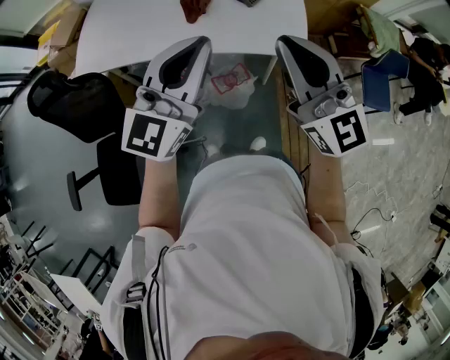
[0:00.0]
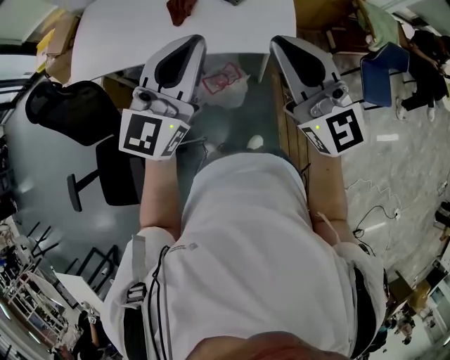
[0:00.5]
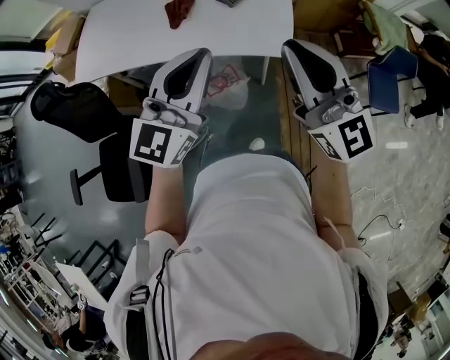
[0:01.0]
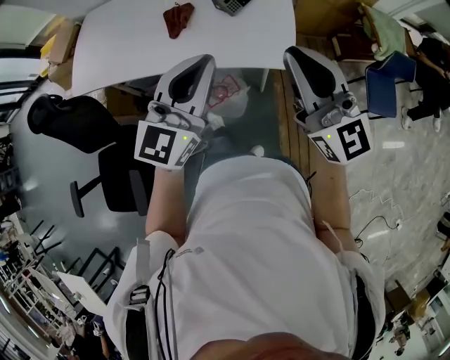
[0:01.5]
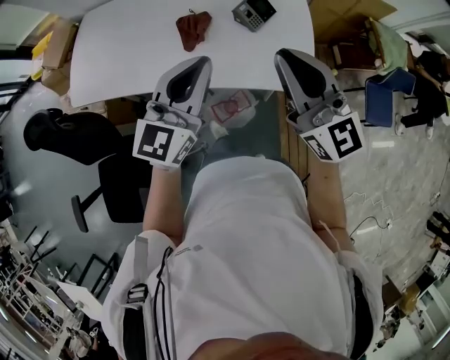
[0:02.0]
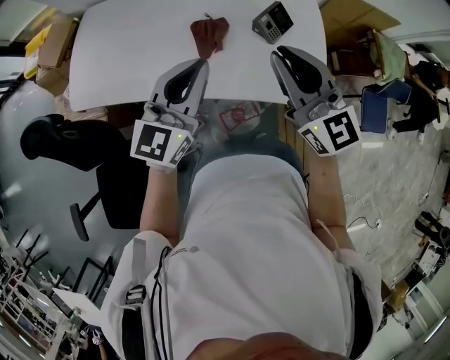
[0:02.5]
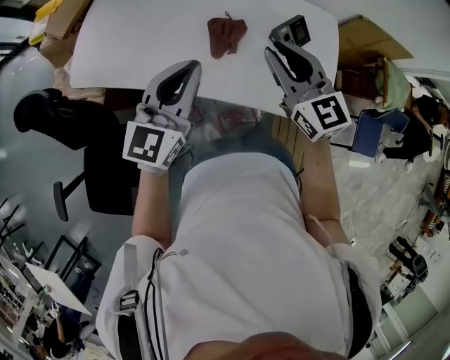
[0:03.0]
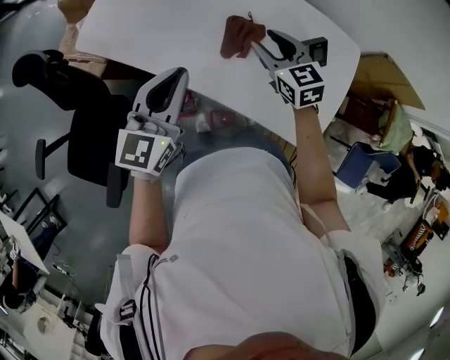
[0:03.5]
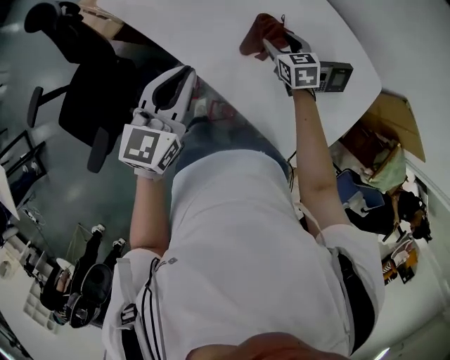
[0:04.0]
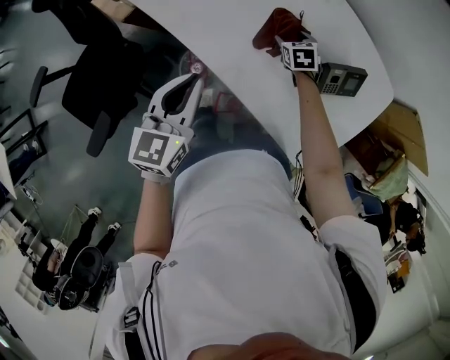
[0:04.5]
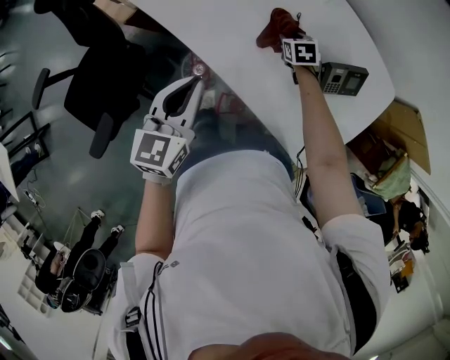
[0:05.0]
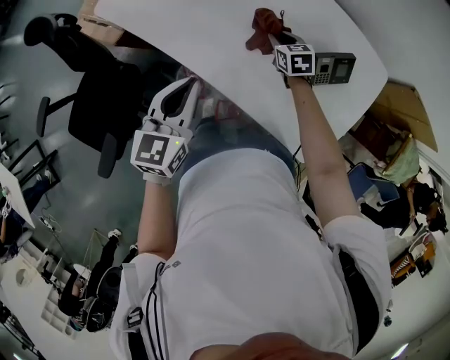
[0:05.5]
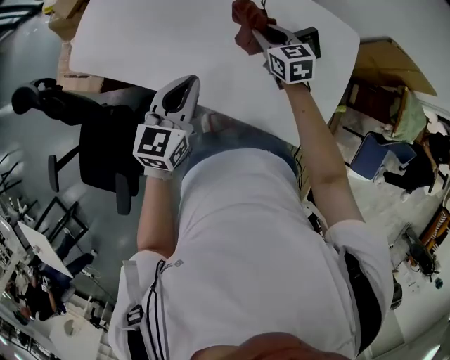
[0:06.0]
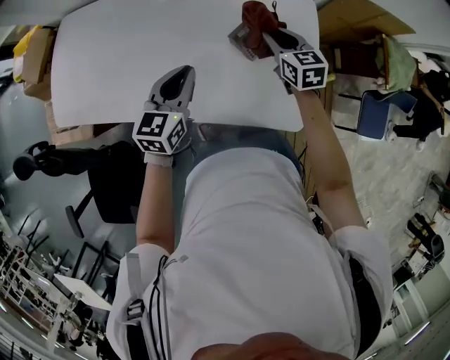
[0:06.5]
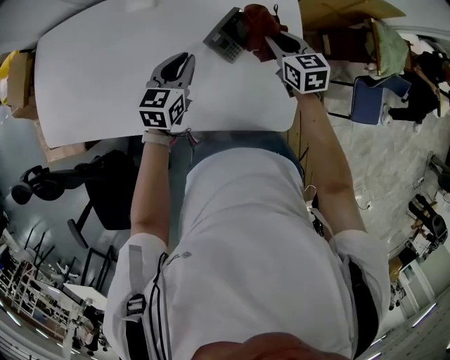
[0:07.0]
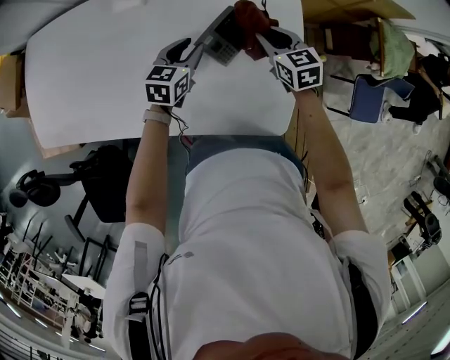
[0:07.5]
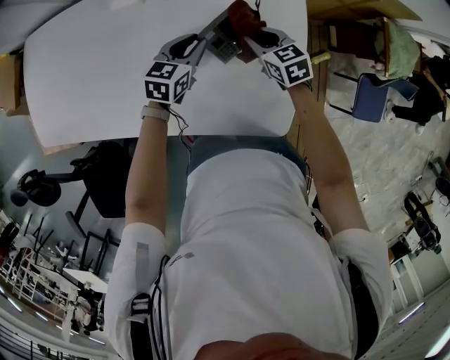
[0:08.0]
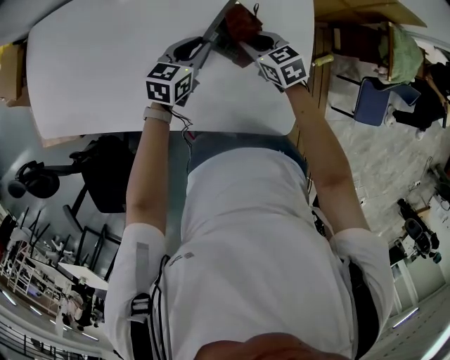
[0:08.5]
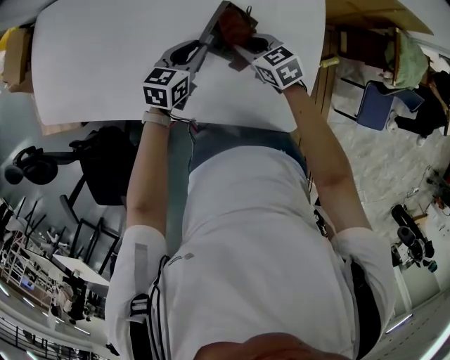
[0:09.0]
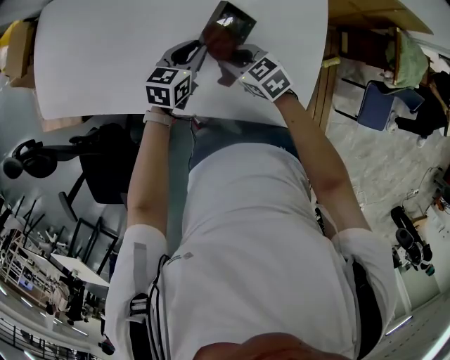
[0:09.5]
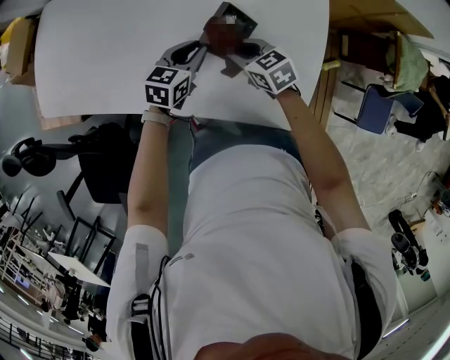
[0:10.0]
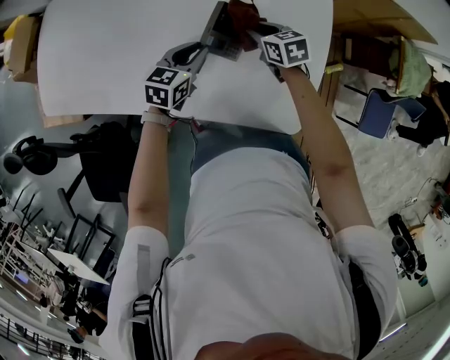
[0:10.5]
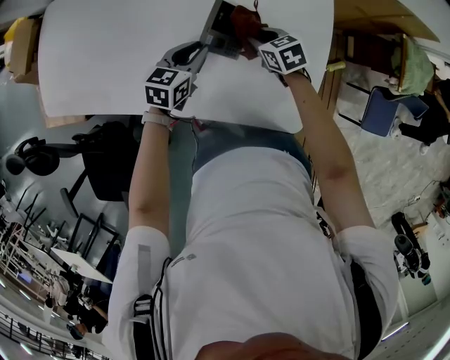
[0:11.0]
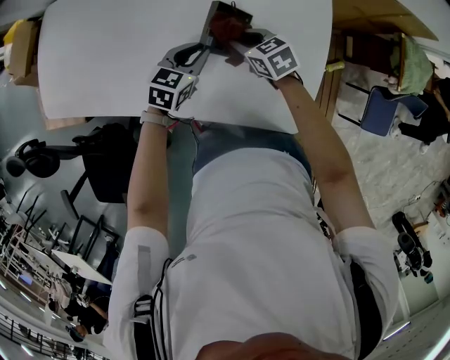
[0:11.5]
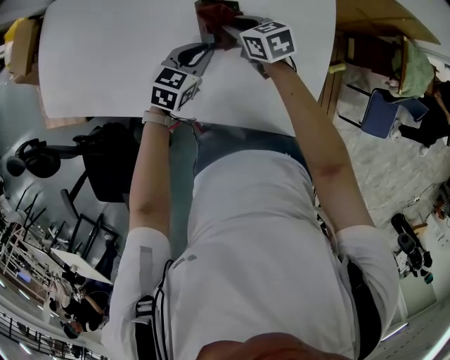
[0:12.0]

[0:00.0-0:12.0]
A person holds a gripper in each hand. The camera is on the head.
0:00.0 to 0:02.0: The right gripper is displaced forward by roughly 15 cm; the left gripper travels forward and downward by approximately 15 cm.
0:02.0 to 0:04.0: The left gripper shifts by roughly 20 cm, and rotates roughly 50 degrees; the right gripper moves downward, approximately 35 cm, tips its fingers downward by some 50 degrees, and opens its fingers.
0:04.0 to 0:06.0: The right gripper moves to the right and upward, roughly 10 cm, swivels some 20 degrees, and closes its fingers. The left gripper moves to the right, some 10 cm.
0:06.0 to 0:08.0: The right gripper is displaced to the right by some 20 cm. The left gripper goes approximately 30 cm to the right, forward and downward, and turns by about 30 degrees.
0:08.0 to 0:10.0: The right gripper goes some 15 cm to the left and backward, while the left gripper heads to the left and backward, covering roughly 10 cm.
0:10.0 to 0:12.0: The right gripper moves forward, about 10 cm.

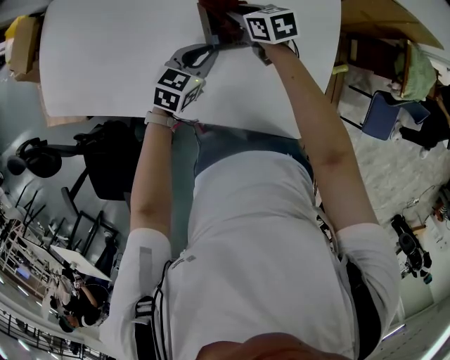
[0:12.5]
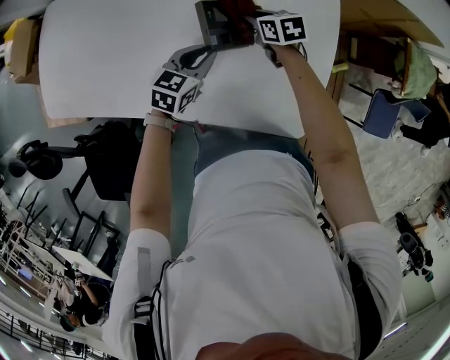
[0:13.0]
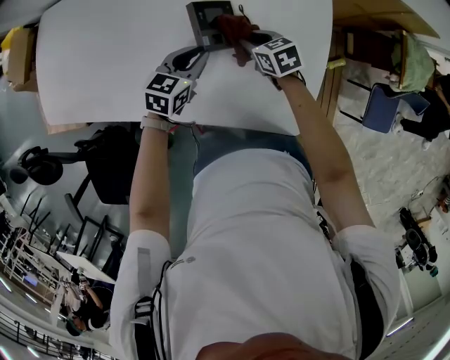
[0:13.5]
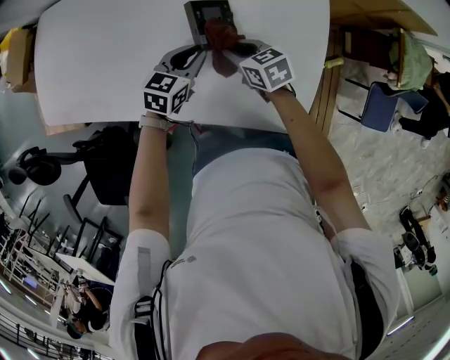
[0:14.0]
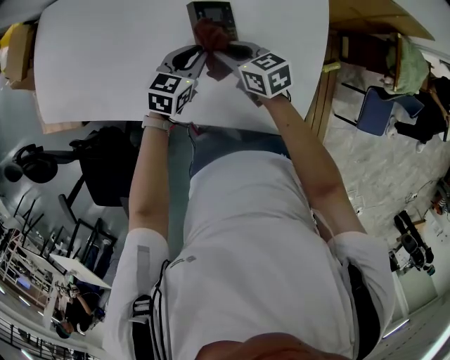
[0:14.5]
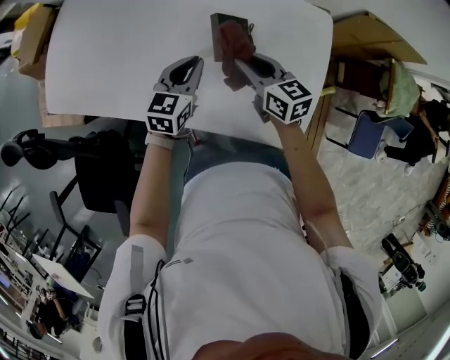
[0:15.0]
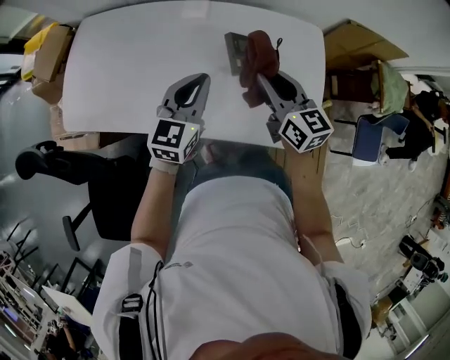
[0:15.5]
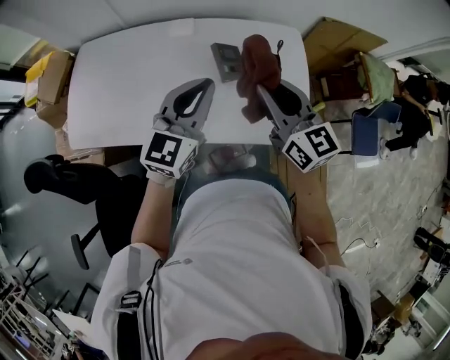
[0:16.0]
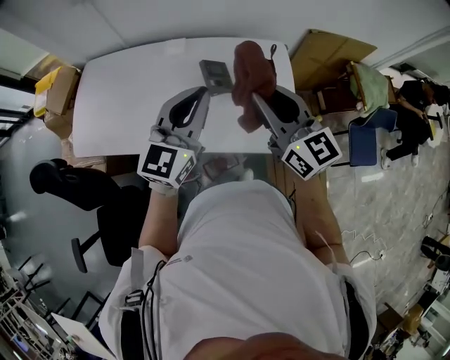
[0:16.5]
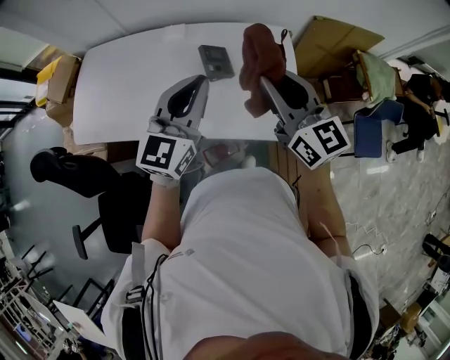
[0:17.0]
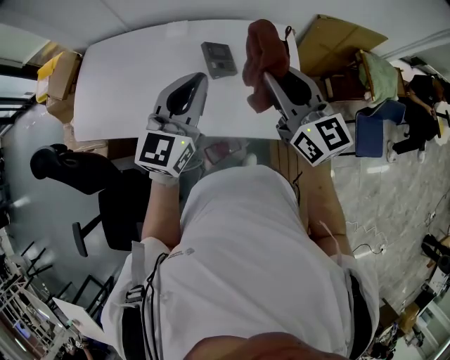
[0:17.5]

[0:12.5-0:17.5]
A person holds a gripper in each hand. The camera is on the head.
0:12.5 to 0:15.0: The right gripper goes approximately 15 cm backward and upward; the left gripper goes approximately 10 cm upward and to the left.
0:15.0 to 0:17.5: The grippers both shift upward and backward by some 30 cm. The right gripper changes its angle by roughly 30 degrees. The left gripper changes its angle by some 30 degrees.

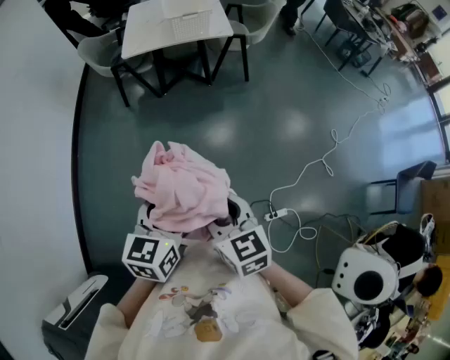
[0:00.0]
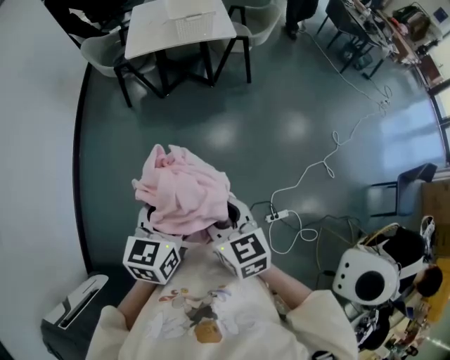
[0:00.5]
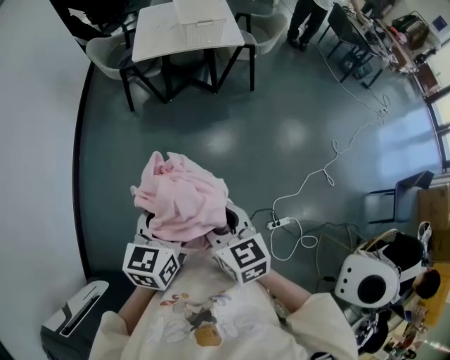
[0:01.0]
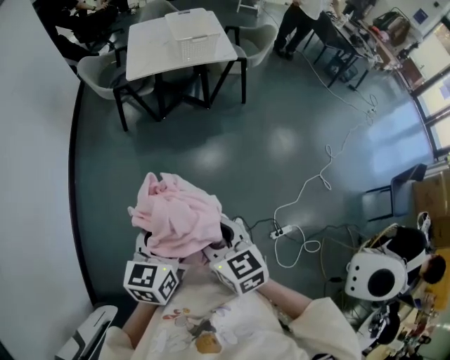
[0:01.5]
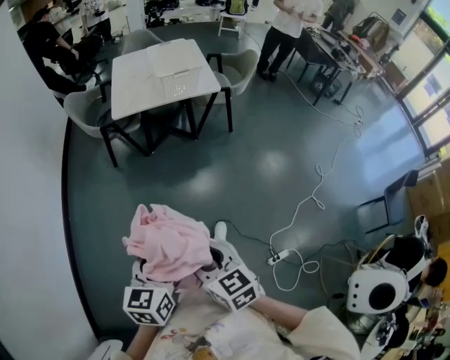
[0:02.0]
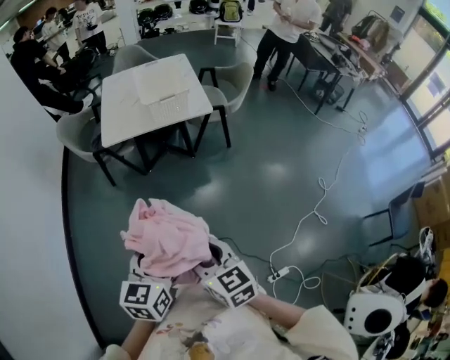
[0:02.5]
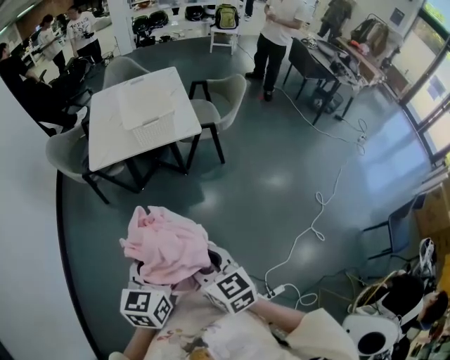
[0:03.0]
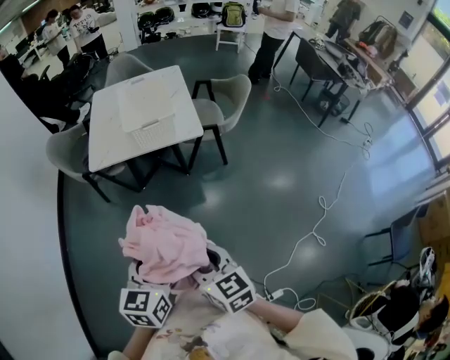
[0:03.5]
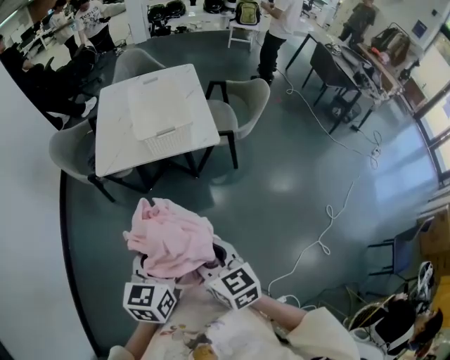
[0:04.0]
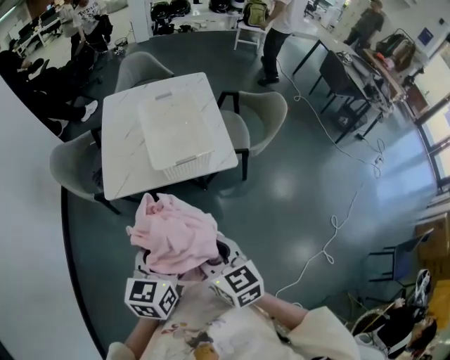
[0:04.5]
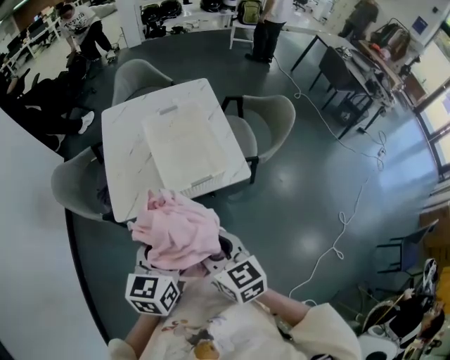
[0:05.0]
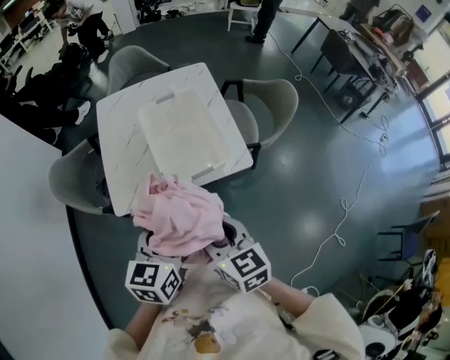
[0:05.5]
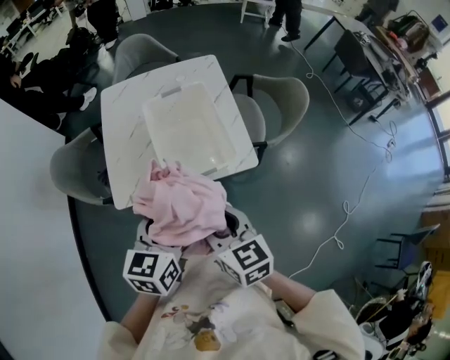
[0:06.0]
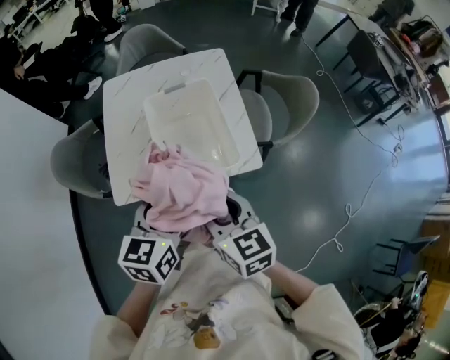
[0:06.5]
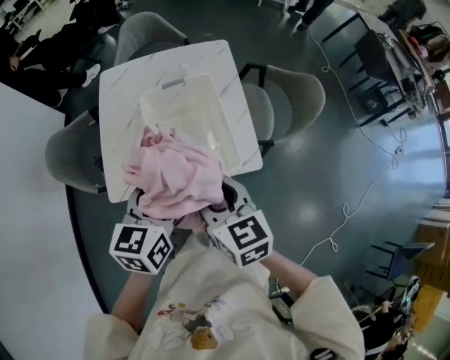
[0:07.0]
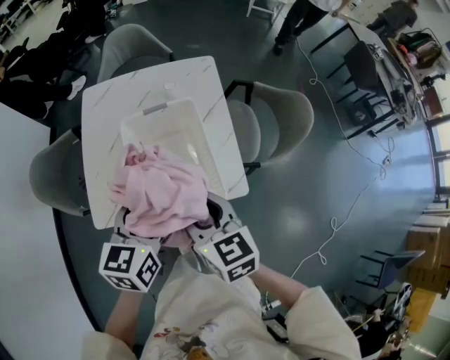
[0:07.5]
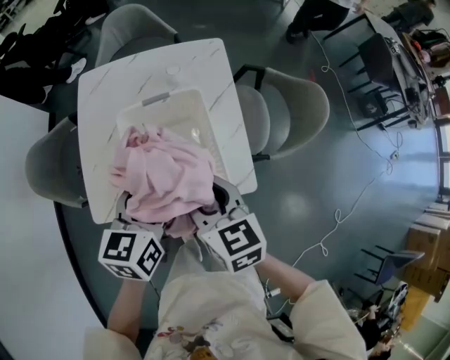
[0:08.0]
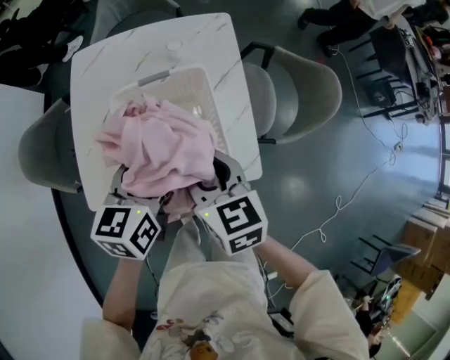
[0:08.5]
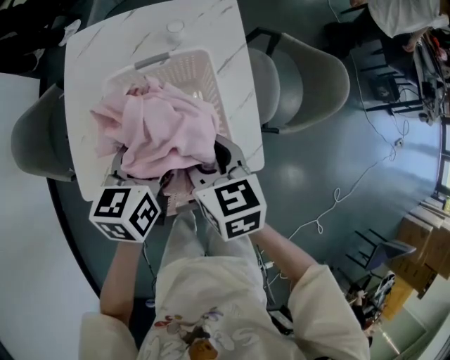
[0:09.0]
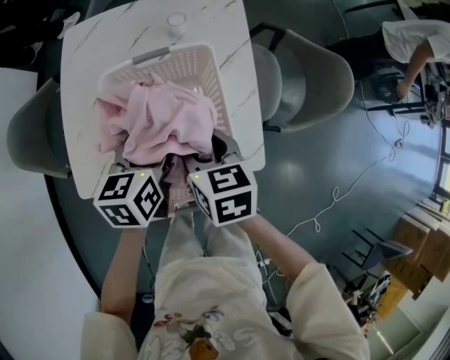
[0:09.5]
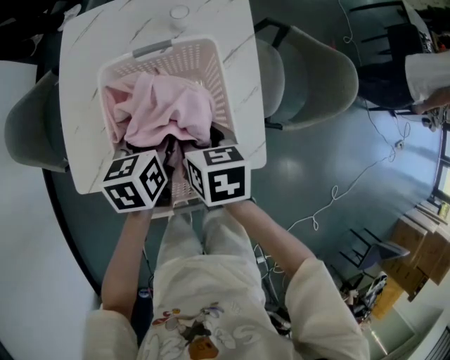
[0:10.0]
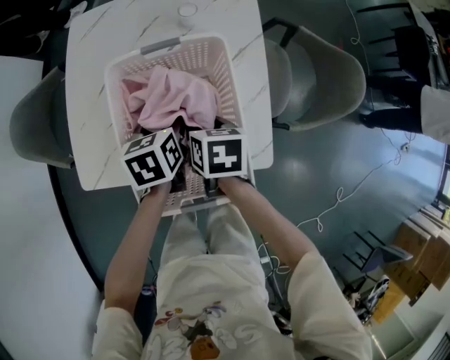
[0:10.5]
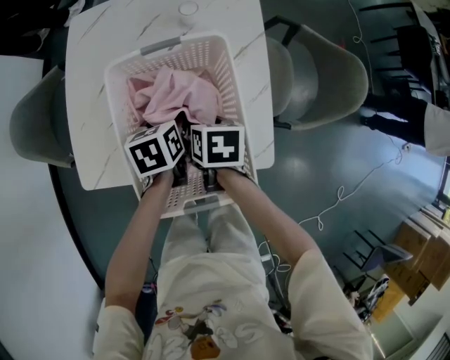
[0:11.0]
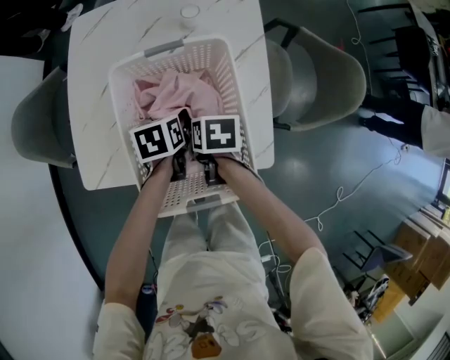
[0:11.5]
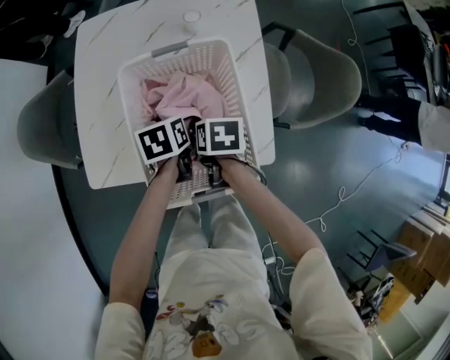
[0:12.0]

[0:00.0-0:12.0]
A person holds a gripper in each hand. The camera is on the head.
0:00.0 to 0:02.0: Both grippers move to the left and forward, approximately 15 cm.
0:02.0 to 0:04.0: Both grippers are carried forward and to the right, roughly 40 cm.
0:04.0 to 0:06.0: Both grippers move forward, approximately 35 cm.
0:06.0 to 0:08.0: The grippers both shift forward by roughly 25 cm.
0:08.0 to 0:10.0: The grippers both shift downward and forward by about 20 cm. The right gripper turns by some 20 degrees.
0:10.0 to 0:12.0: The grippers both shift downward by some 5 cm. The right gripper opens its fingers.
